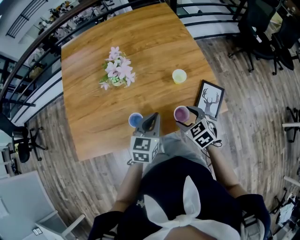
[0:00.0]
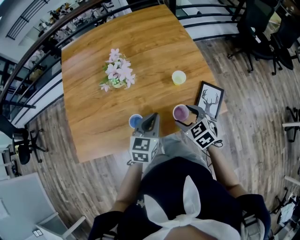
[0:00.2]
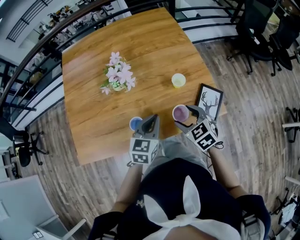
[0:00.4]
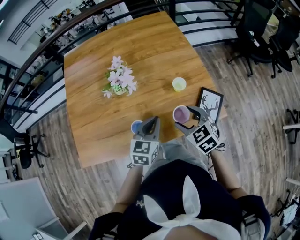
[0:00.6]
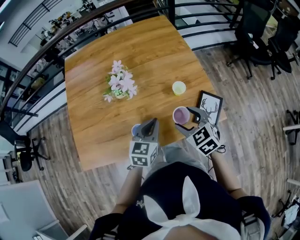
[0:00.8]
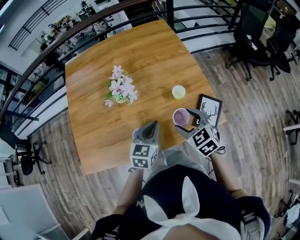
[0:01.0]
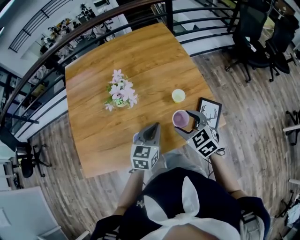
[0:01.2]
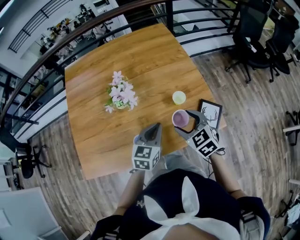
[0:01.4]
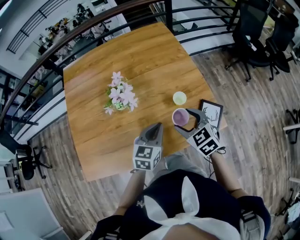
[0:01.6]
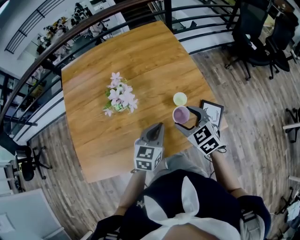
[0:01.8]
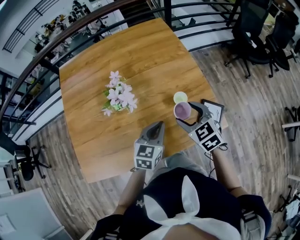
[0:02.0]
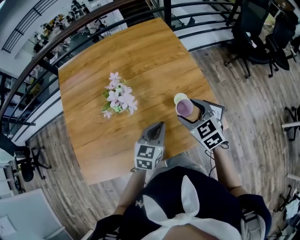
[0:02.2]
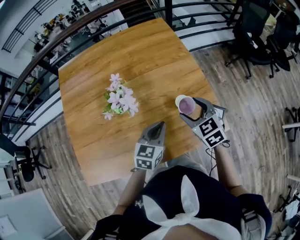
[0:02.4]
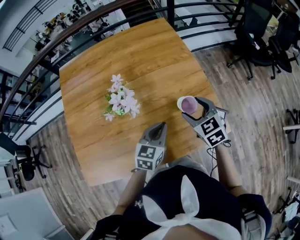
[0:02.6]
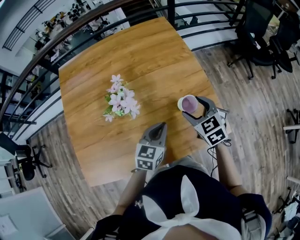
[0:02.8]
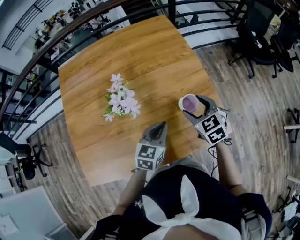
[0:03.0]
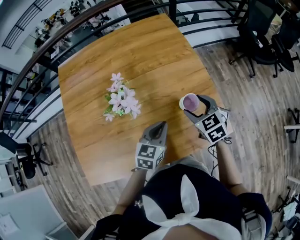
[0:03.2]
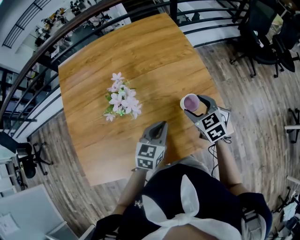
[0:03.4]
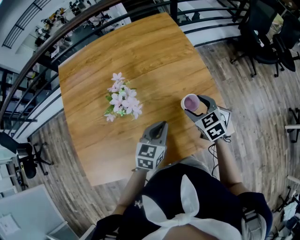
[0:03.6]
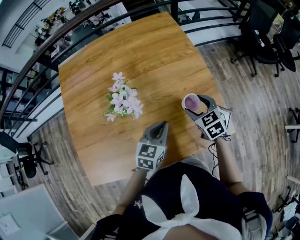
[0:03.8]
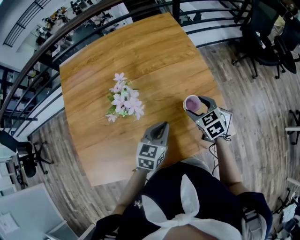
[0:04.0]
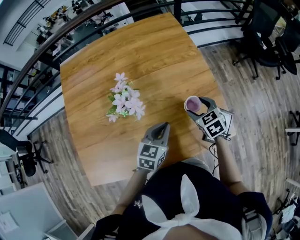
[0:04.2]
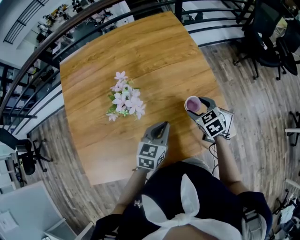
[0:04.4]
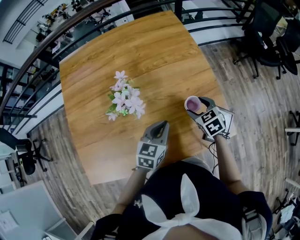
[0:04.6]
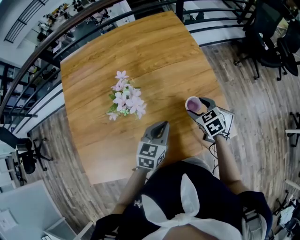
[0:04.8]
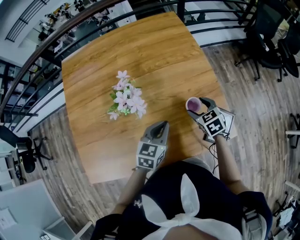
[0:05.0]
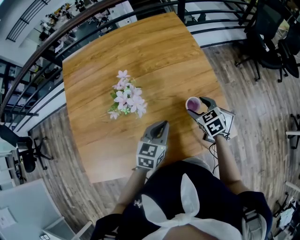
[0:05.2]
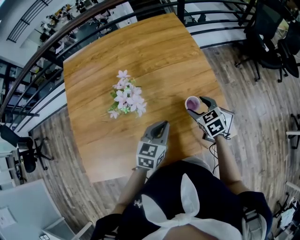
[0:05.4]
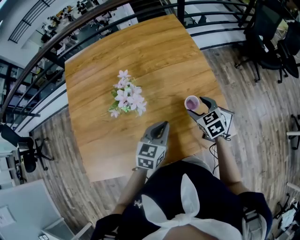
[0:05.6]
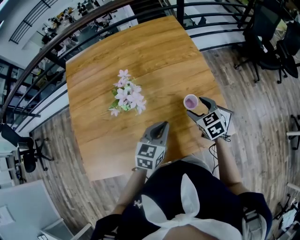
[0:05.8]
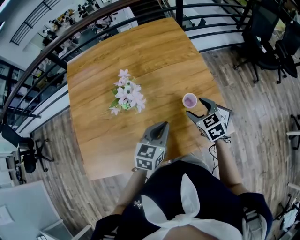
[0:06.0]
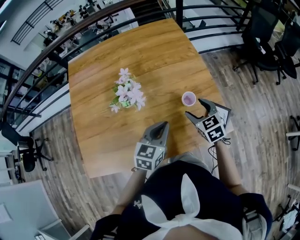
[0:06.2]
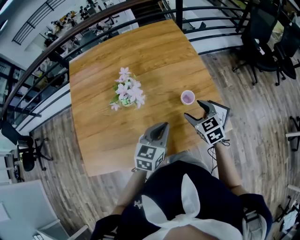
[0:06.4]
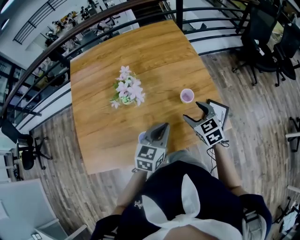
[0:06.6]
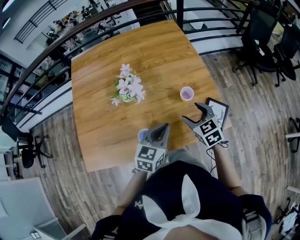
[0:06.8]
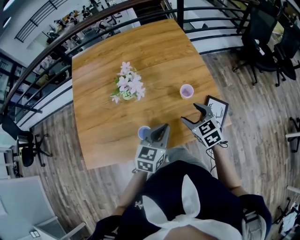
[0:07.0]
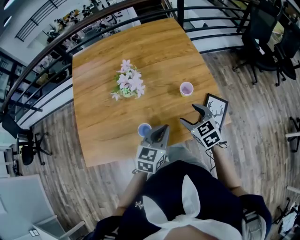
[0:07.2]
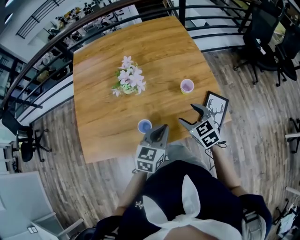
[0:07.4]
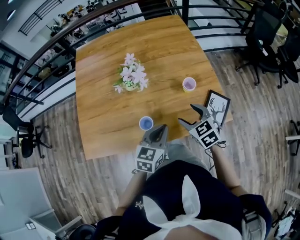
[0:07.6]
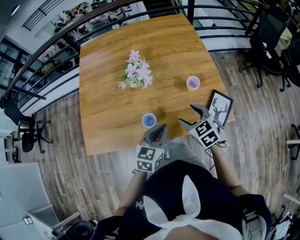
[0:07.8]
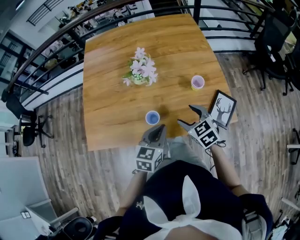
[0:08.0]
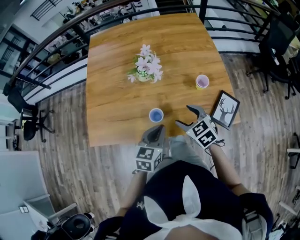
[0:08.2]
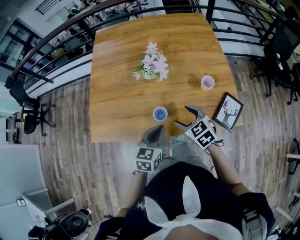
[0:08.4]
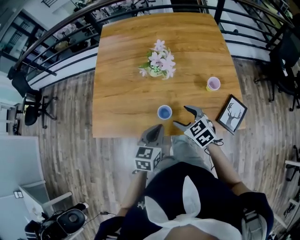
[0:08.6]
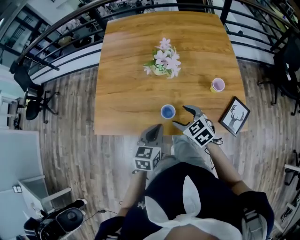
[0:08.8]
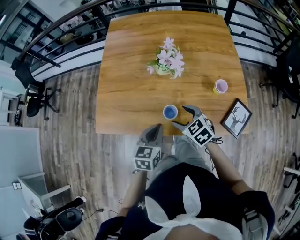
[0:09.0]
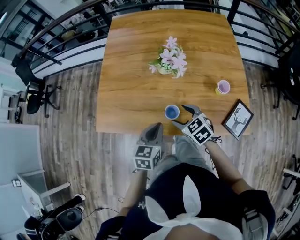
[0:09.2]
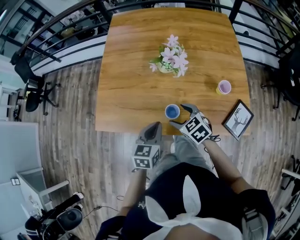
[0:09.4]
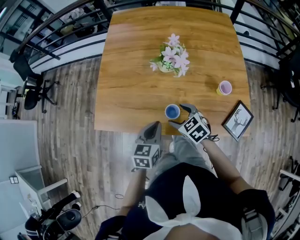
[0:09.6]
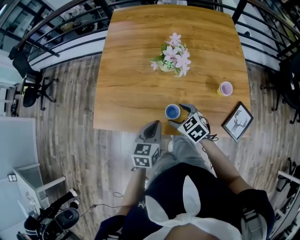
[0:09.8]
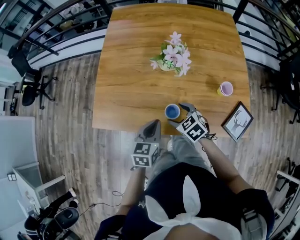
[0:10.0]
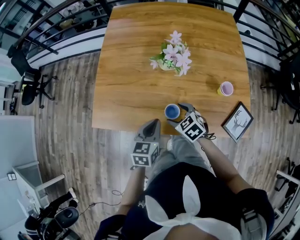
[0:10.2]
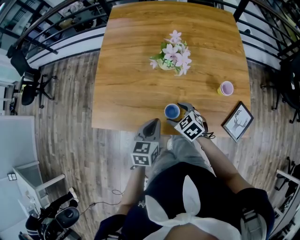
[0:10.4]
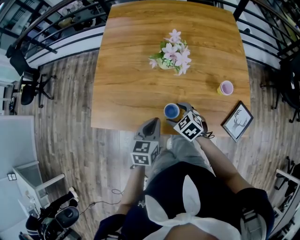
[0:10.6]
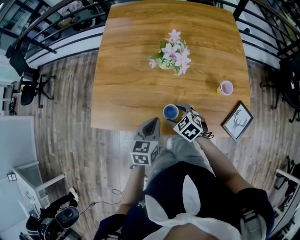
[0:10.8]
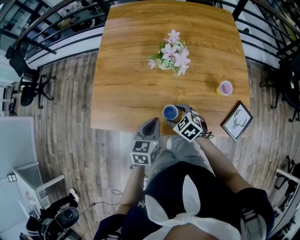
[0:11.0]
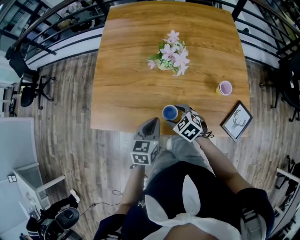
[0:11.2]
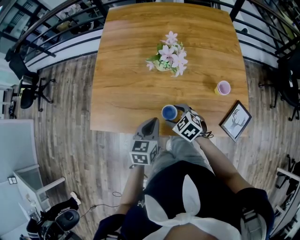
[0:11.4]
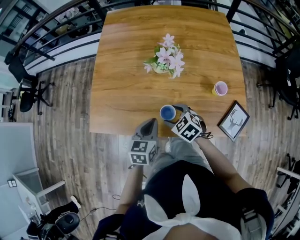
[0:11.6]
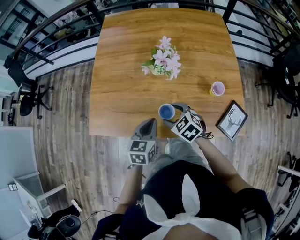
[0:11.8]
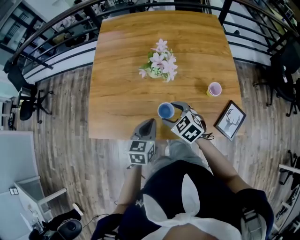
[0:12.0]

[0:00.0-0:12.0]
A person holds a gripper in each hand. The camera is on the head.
0.0 to 1.6 s: The left gripper moves forward, roughly 5 cm, while the right gripper is displaced upward and forward by roughly 15 cm.
1.6 to 3.0 s: The right gripper travels forward by roughly 10 cm; the left gripper goes approximately 5 cm forward.
3.0 to 4.4 s: The right gripper is displaced downward by approximately 10 cm.
4.4 to 6.0 s: The right gripper shifts by some 5 cm. Meanwhile the left gripper changes place by roughly 5 cm.
6.0 to 7.6 s: The two grippers go approximately 15 cm backward.
7.6 to 9.0 s: Both grippers travel together to the left, about 15 cm. The left gripper rotates roughly 20 degrees. Meanwhile the right gripper swivels about 20 degrees.
9.0 to 10.4 s: The right gripper moves downward, about 5 cm.
10.4 to 12.0 s: The right gripper heads upward, covering some 5 cm.

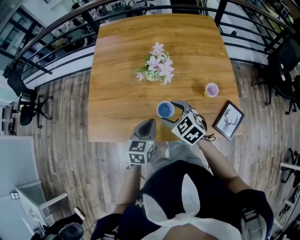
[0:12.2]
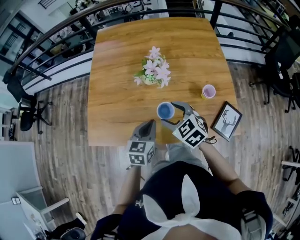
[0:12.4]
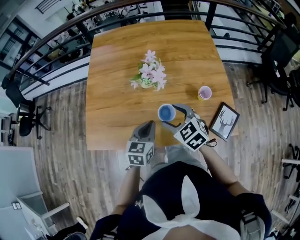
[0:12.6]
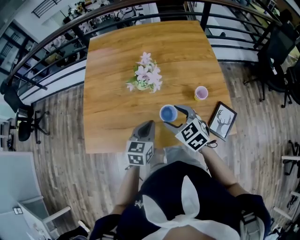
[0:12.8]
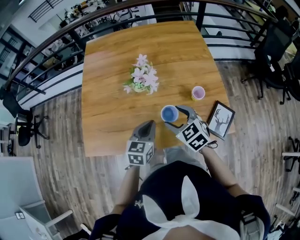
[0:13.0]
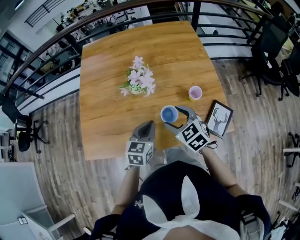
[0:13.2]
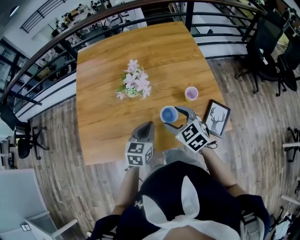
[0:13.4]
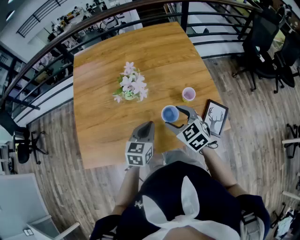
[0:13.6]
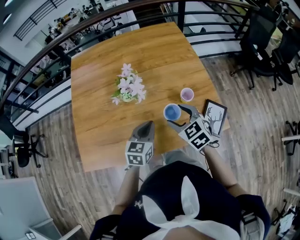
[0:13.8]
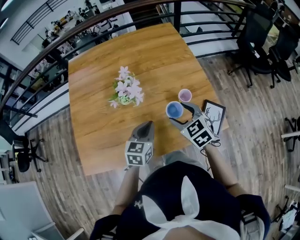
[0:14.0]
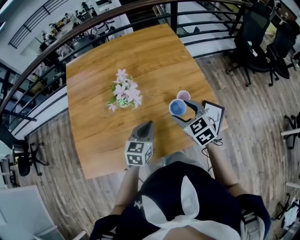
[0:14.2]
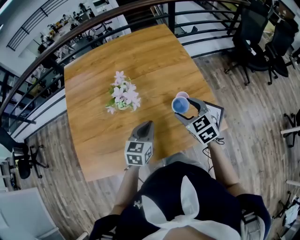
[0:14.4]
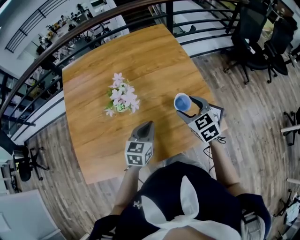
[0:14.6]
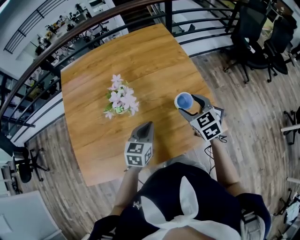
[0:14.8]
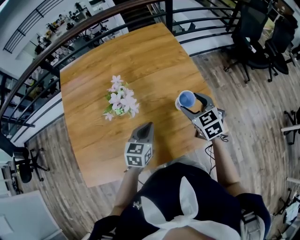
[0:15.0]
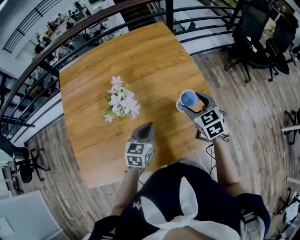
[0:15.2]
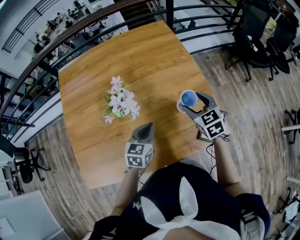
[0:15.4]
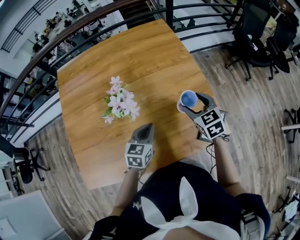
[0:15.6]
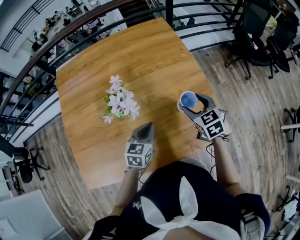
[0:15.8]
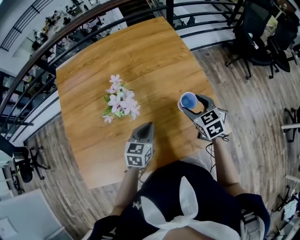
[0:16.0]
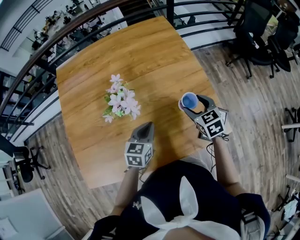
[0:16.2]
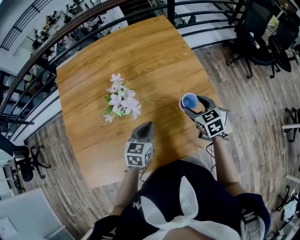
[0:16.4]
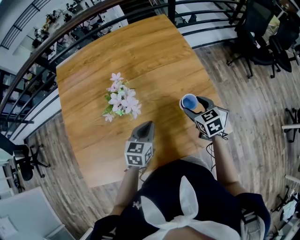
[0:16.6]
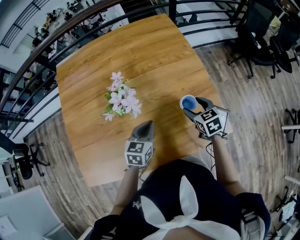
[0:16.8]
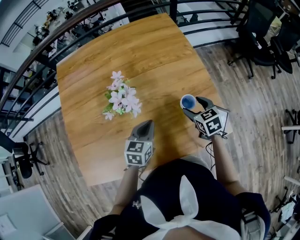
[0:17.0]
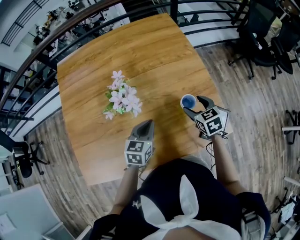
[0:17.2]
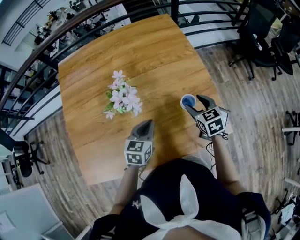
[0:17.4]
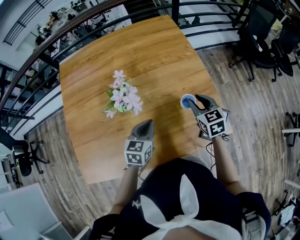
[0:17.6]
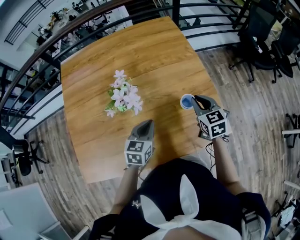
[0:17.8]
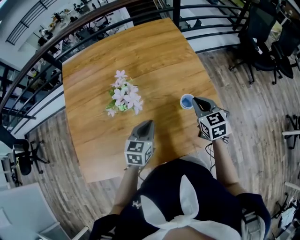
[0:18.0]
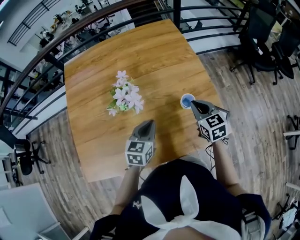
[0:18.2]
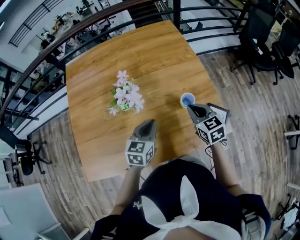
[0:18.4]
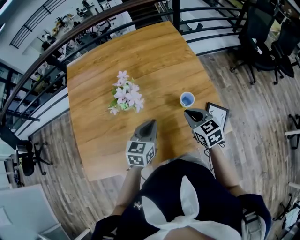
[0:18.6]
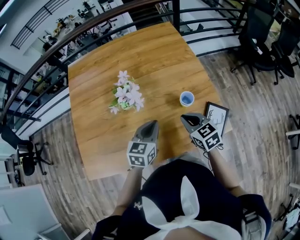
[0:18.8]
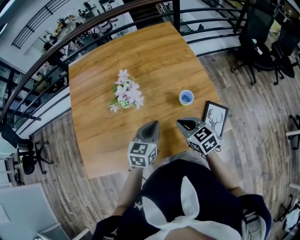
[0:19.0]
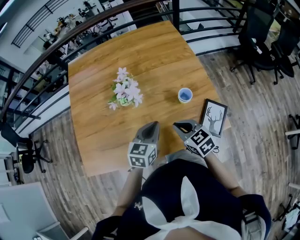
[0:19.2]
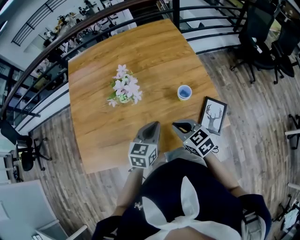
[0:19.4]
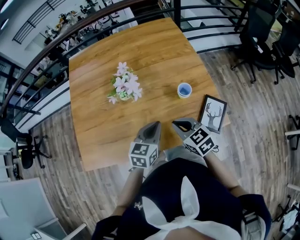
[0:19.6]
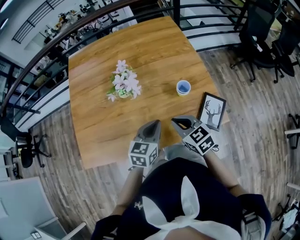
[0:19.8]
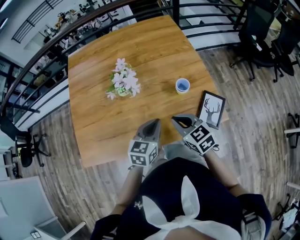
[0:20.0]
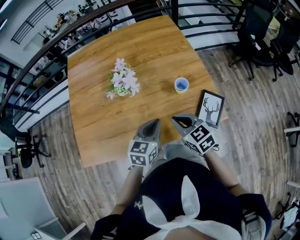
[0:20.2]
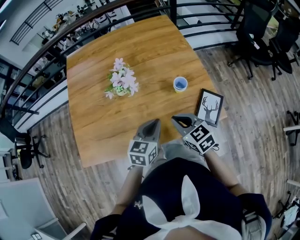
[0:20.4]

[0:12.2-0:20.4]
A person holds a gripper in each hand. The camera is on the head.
12.2 to 13.8 s: Both grippers move to the right, some 10 cm. The right gripper rotates some 20 degrees.
13.8 to 15.4 s: The left gripper moves forward, some 10 cm, while the right gripper shifts approximately 15 cm forward and to the right.
15.4 to 17.2 s: The right gripper shifts some 5 cm downward.
17.2 to 18.8 s: The left gripper goes approximately 10 cm upward and backward, while the right gripper goes approximately 15 cm backward, upward and to the left, and closes.
18.8 to 20.4 s: The grippers both shift backward by roughly 10 cm.

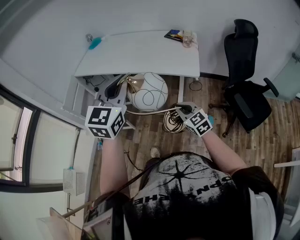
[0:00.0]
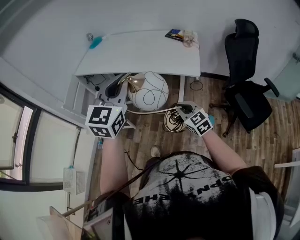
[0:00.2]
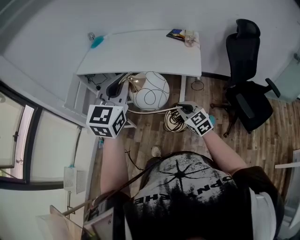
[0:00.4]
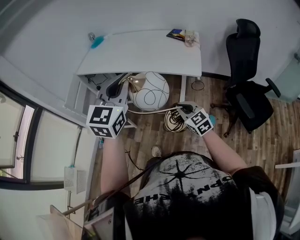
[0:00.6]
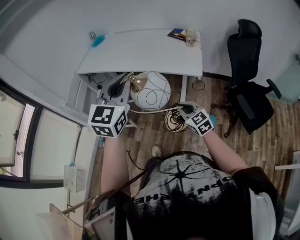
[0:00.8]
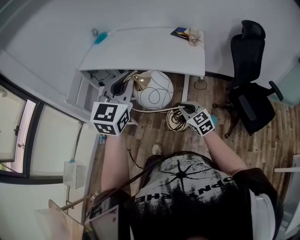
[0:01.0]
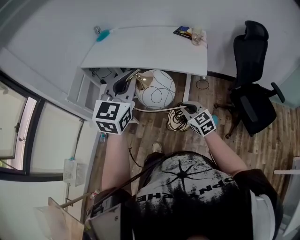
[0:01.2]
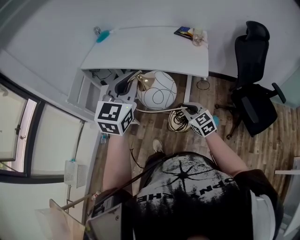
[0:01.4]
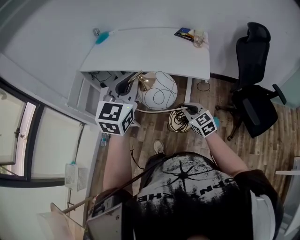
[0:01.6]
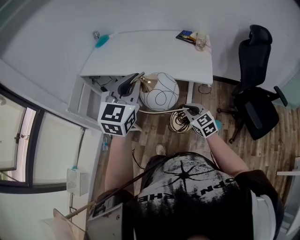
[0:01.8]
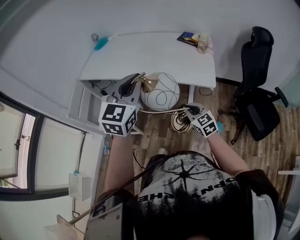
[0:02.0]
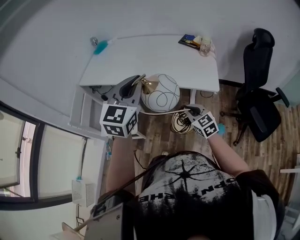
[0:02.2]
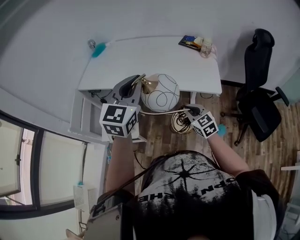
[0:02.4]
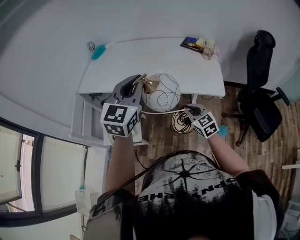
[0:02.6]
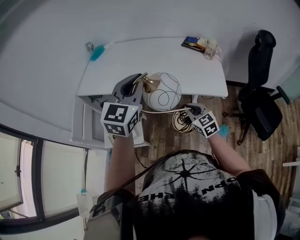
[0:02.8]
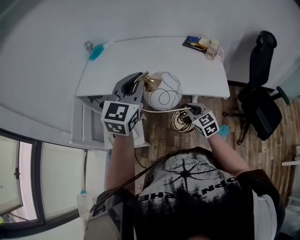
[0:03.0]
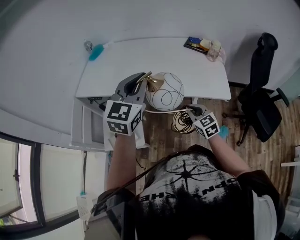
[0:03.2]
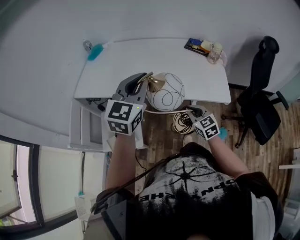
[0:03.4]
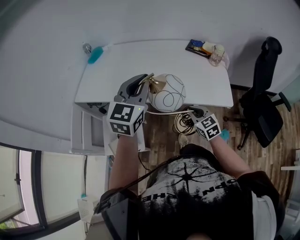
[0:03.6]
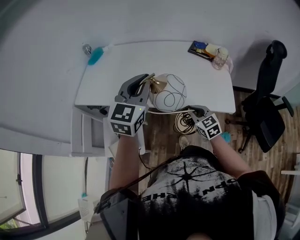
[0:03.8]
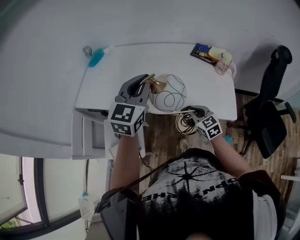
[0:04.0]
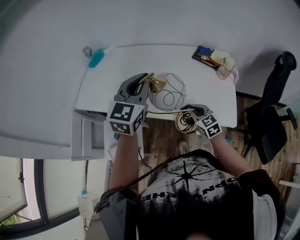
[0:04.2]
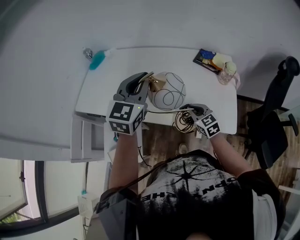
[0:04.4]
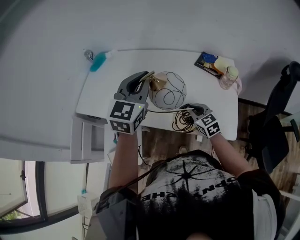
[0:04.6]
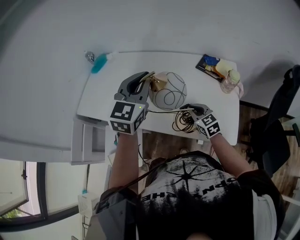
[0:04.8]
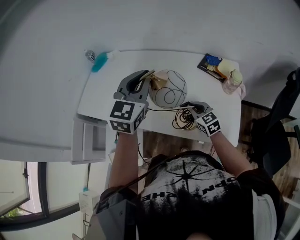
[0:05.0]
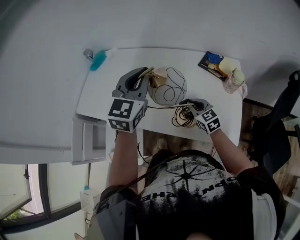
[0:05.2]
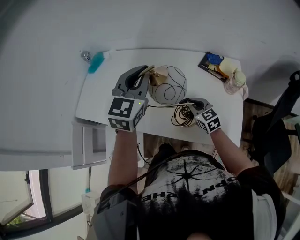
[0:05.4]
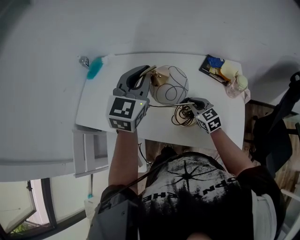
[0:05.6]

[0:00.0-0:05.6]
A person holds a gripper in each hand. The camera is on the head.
0.0 to 1.4 s: The grippers move only a little.
1.4 to 2.8 s: The two grippers go some 25 cm forward and to the left.
2.8 to 4.2 s: Both grippers travel together forward, approximately 20 cm.
4.2 to 5.6 s: Both grippers move forward, about 15 cm.
